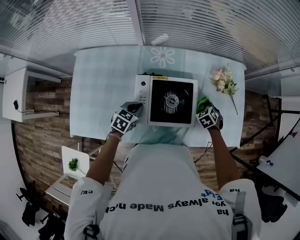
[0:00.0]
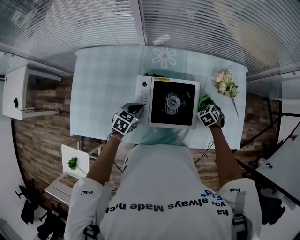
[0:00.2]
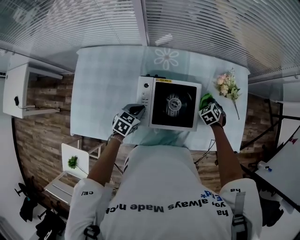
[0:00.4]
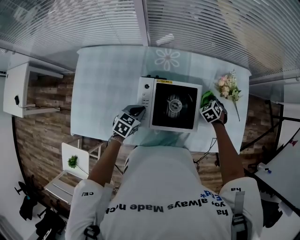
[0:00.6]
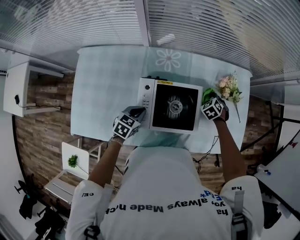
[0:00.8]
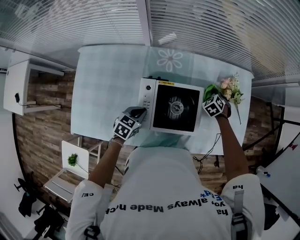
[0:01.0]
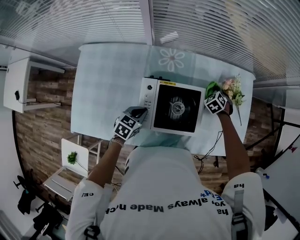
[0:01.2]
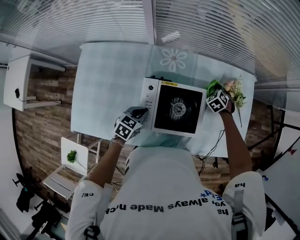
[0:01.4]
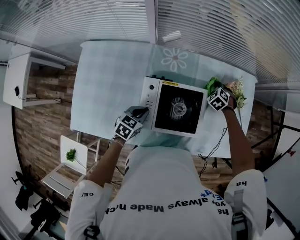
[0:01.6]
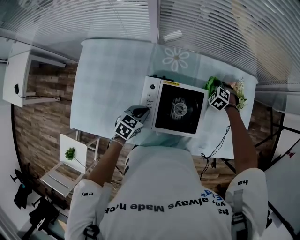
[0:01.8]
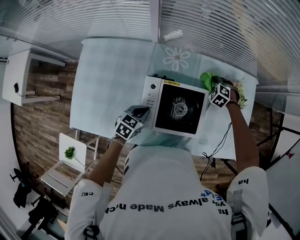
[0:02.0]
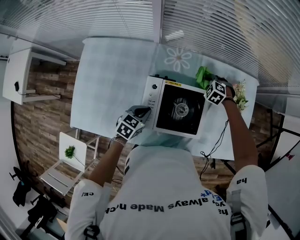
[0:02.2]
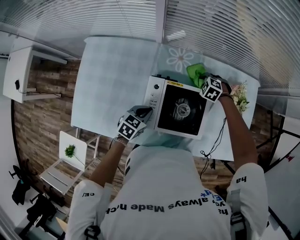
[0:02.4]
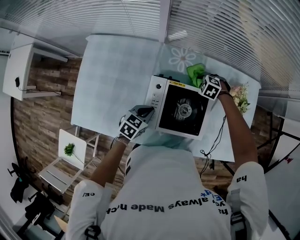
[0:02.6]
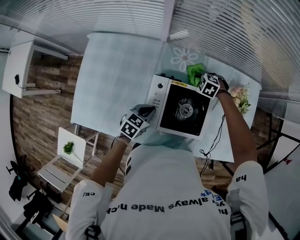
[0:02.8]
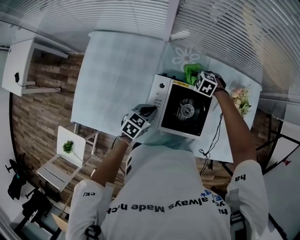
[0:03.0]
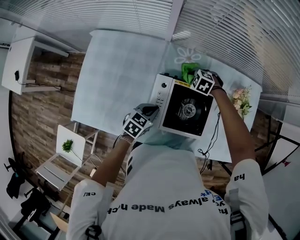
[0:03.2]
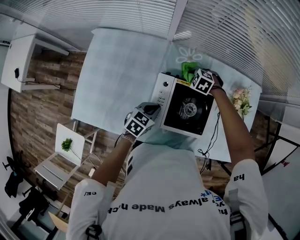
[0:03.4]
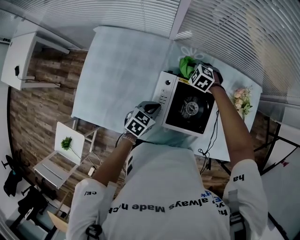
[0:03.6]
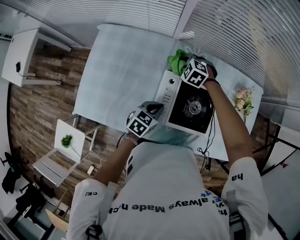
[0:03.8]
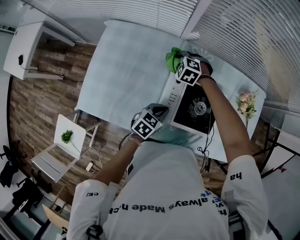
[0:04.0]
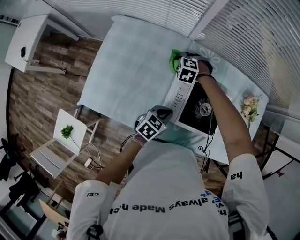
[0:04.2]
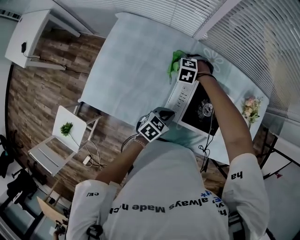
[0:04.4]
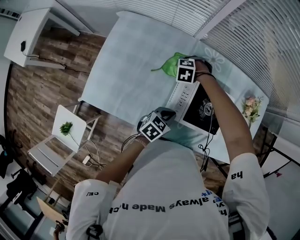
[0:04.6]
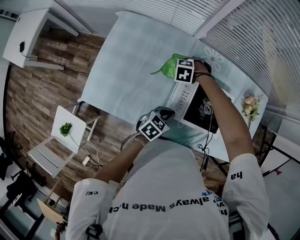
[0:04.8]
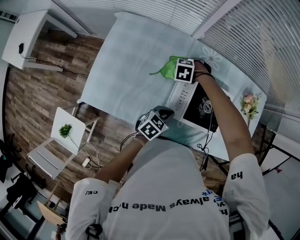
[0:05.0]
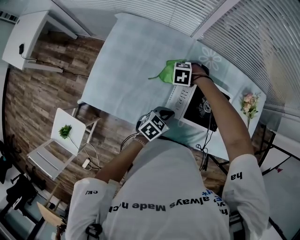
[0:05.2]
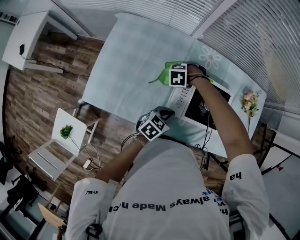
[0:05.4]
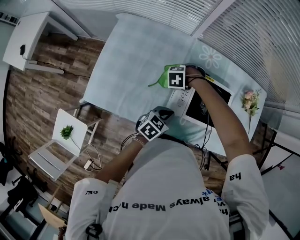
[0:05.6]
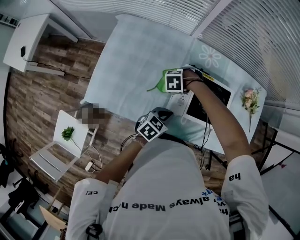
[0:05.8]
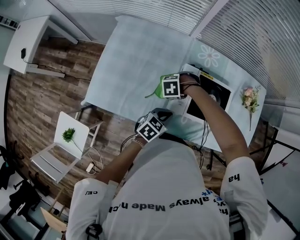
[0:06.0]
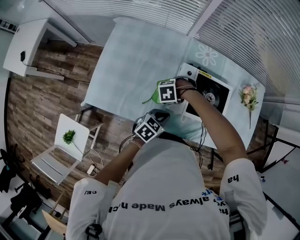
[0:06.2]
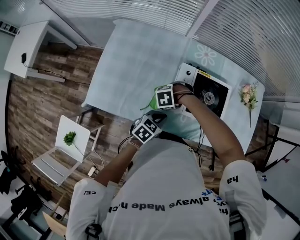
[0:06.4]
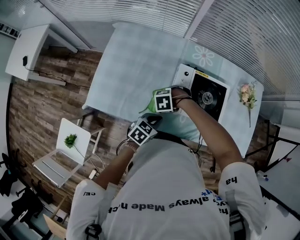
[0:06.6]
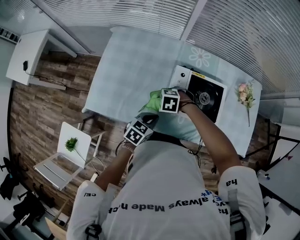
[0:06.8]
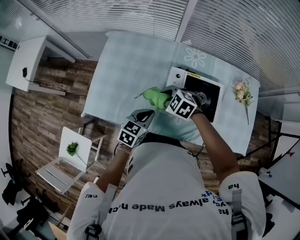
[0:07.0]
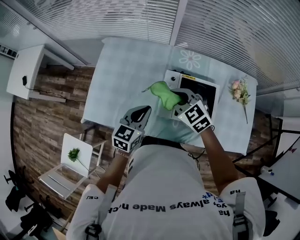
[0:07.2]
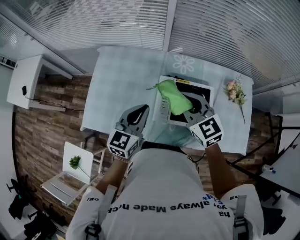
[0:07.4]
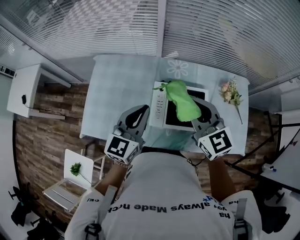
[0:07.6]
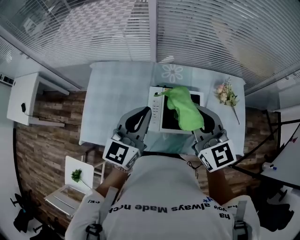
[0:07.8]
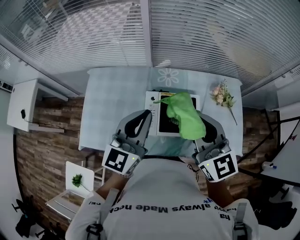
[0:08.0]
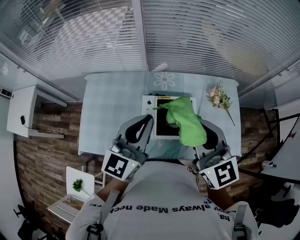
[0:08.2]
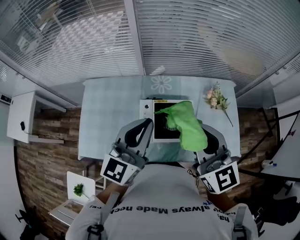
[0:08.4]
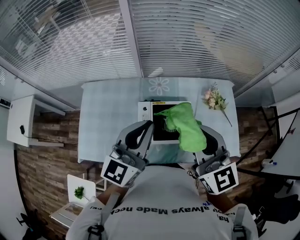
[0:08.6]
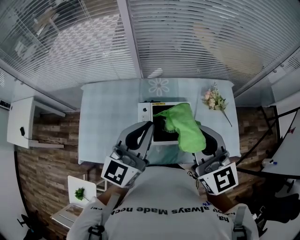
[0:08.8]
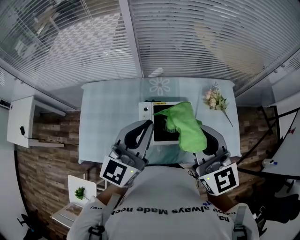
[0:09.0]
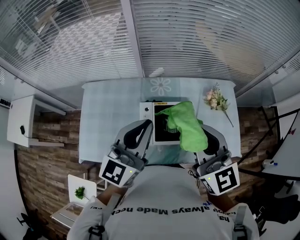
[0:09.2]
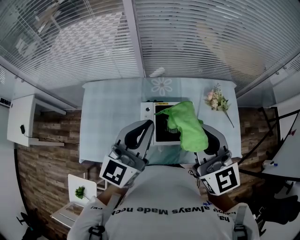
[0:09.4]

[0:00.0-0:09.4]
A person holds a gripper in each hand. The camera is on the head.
0:00.0 to 0:01.6: The right gripper heads forward and to the left, covering some 15 cm, and changes its angle by roughly 20 degrees.
0:01.6 to 0:03.2: The right gripper changes place by some 20 cm, and changes its angle by about 30 degrees.
0:03.2 to 0:04.8: The left gripper moves approximately 5 cm, while the right gripper ends up approximately 20 cm from where it was, and rotates about 20 degrees.
0:04.8 to 0:06.2: The right gripper ends up some 15 cm from where it was; the left gripper ends up about 5 cm from where it was.
0:06.2 to 0:07.8: The grippers both shift upward by roughly 35 cm. The left gripper angles its fingers upward, by about 40 degrees. Meanwhile the right gripper tilts its fingers approximately 70 degrees upward.
0:07.8 to 0:09.4: The grippers both shift upward by about 5 cm.

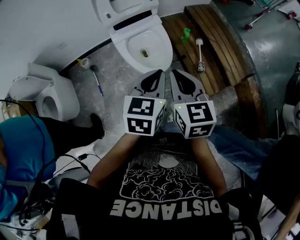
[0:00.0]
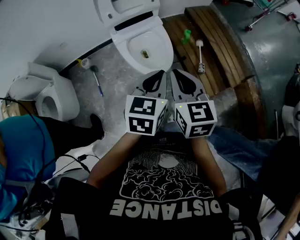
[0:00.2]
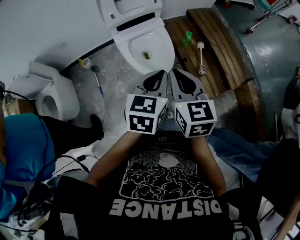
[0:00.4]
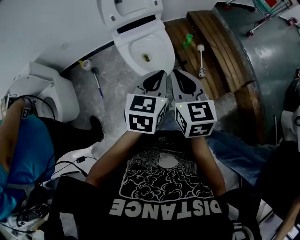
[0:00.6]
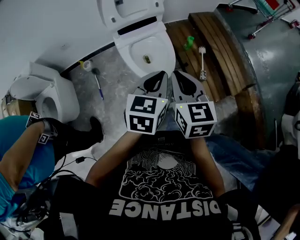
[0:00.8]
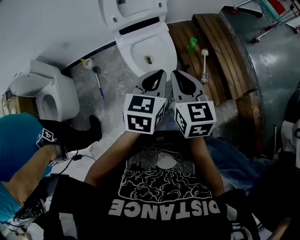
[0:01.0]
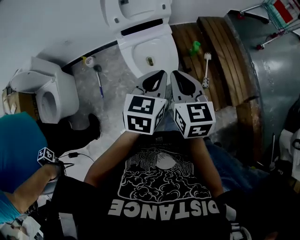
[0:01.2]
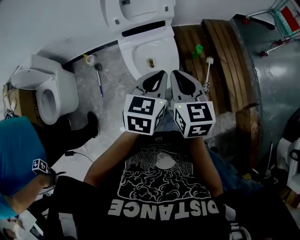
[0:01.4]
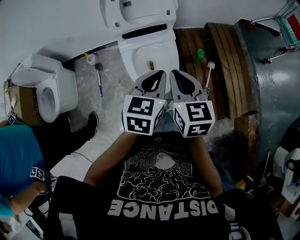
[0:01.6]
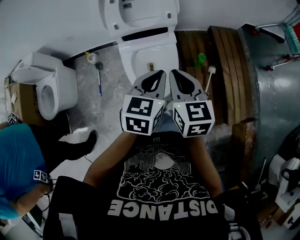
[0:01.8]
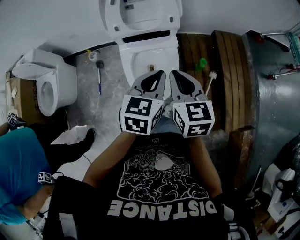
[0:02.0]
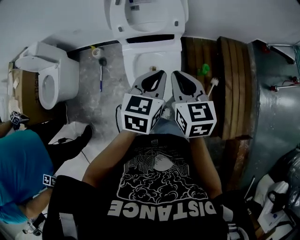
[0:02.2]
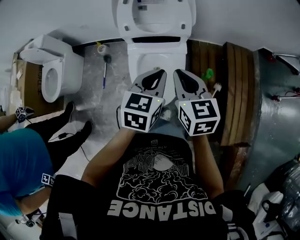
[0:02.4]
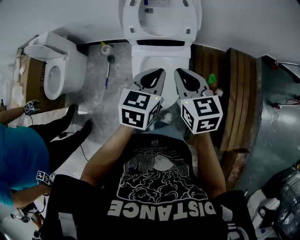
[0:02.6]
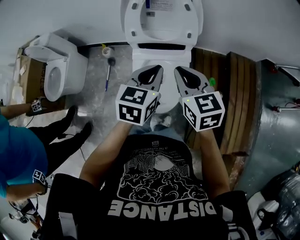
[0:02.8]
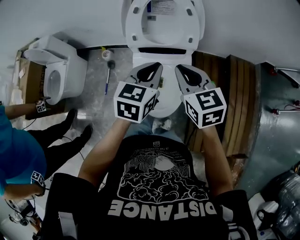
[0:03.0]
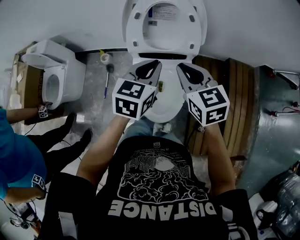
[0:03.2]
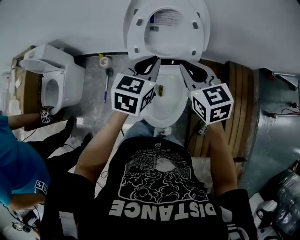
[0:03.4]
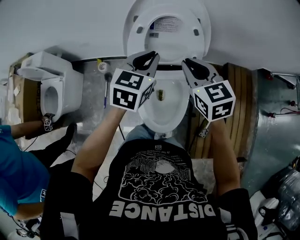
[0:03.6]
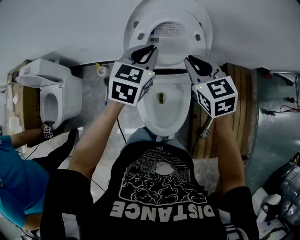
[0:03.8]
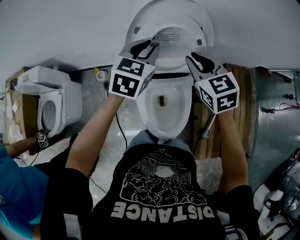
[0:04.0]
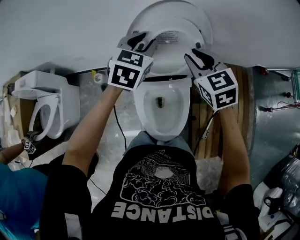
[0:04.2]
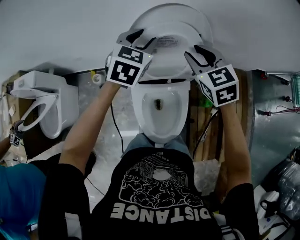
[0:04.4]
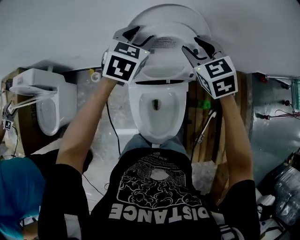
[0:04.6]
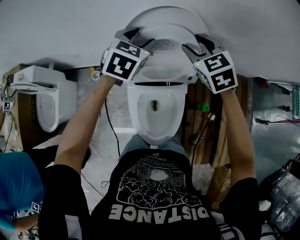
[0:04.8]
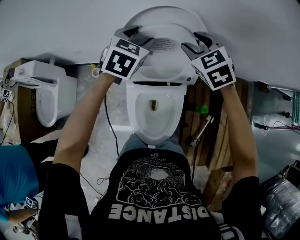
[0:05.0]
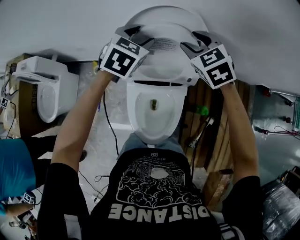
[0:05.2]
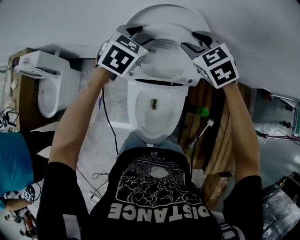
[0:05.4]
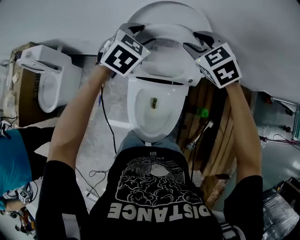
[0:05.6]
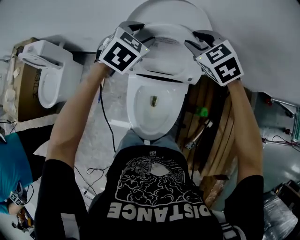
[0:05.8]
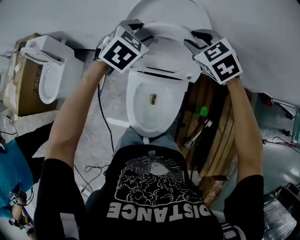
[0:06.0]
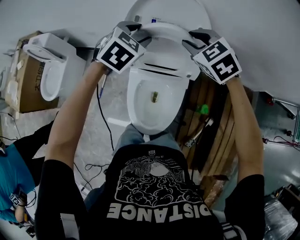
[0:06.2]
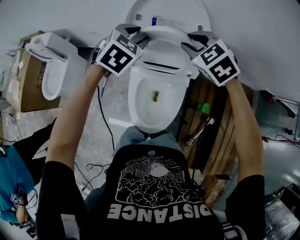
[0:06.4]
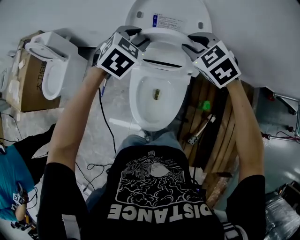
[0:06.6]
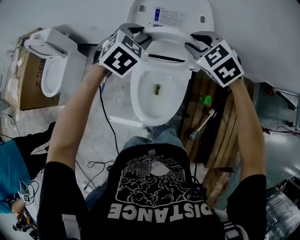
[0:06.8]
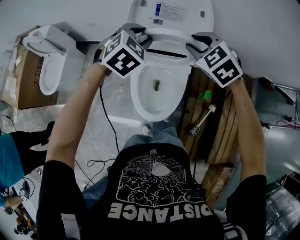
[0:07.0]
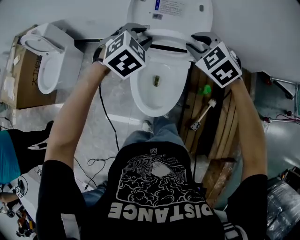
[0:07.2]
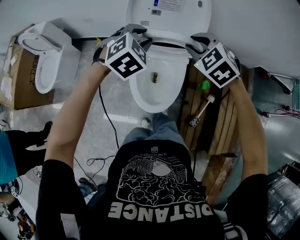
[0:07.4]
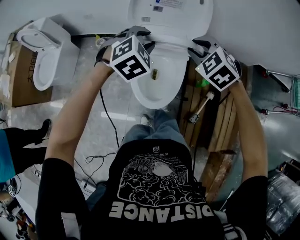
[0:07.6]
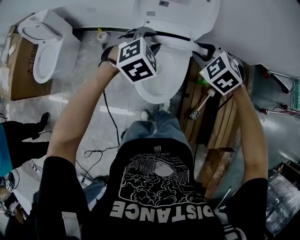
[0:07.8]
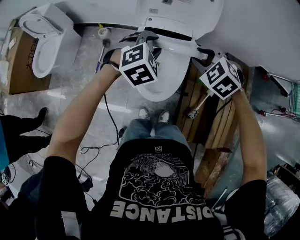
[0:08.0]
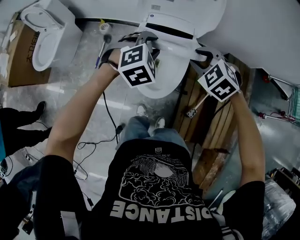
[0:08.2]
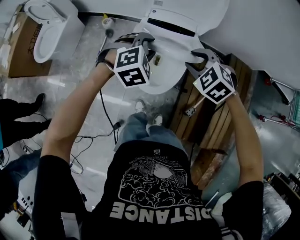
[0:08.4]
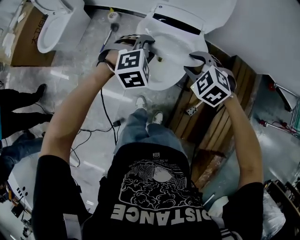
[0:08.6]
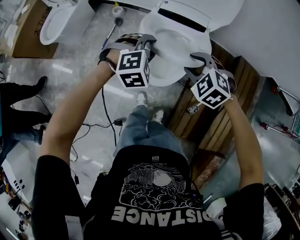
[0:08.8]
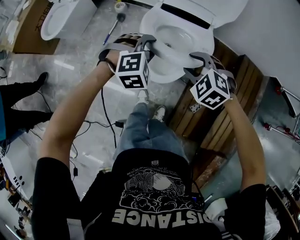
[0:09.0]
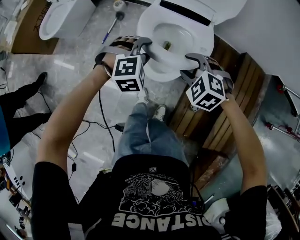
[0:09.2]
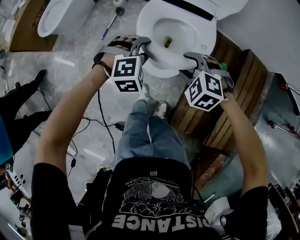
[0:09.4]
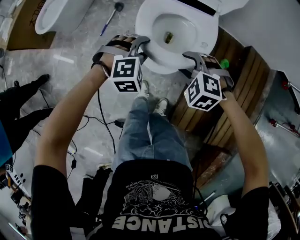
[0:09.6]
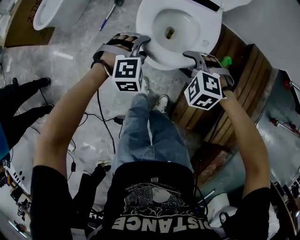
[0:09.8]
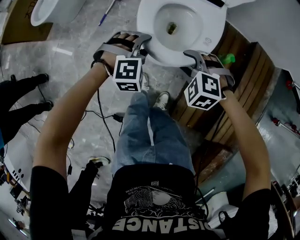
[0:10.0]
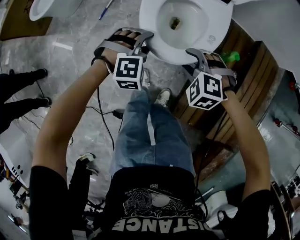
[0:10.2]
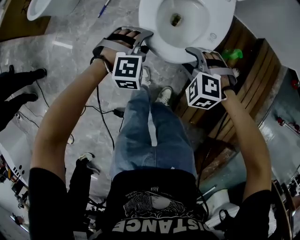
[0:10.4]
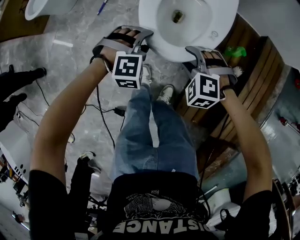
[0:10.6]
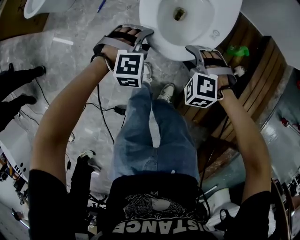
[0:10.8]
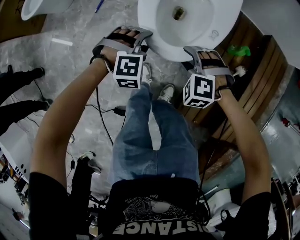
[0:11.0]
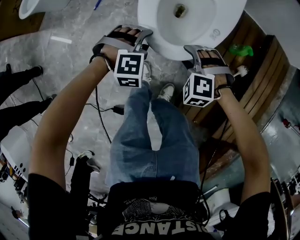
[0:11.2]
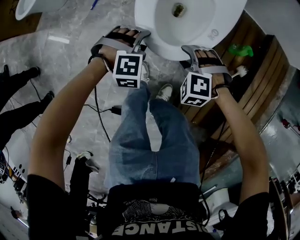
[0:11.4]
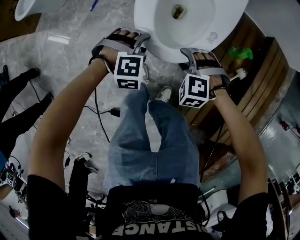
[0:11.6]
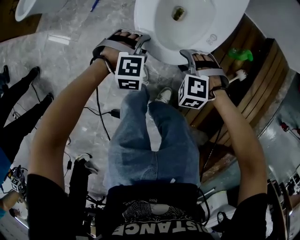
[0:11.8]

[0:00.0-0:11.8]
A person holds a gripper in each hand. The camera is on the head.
0:00.0 to 0:01.4: The two grippers go approximately 15 cm forward.
0:01.4 to 0:03.0: The grippers both shift forward by approximately 20 cm. The right gripper turns by about 30 degrees.
0:03.0 to 0:04.4: The two grippers go approximately 25 cm forward. The right gripper opens up, while the left gripper opens.
0:04.4 to 0:06.0: The right gripper turns by some 30 degrees.
0:06.0 to 0:07.4: Both grippers move backward, about 20 cm.
0:07.4 to 0:08.8: Both grippers move backward and downward, about 20 cm. The right gripper turns by roughly 20 degrees.
0:08.8 to 0:10.4: Both grippers travel together downward and backward, roughly 25 cm.
0:10.4 to 0:11.8: The grippers both shift downward by approximately 15 cm.

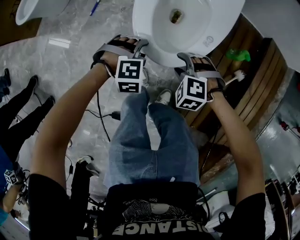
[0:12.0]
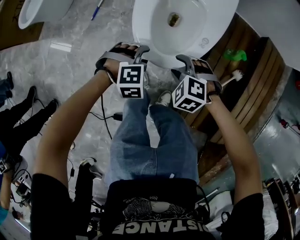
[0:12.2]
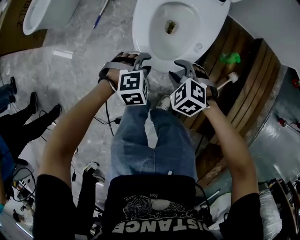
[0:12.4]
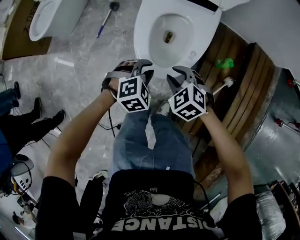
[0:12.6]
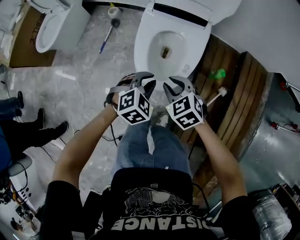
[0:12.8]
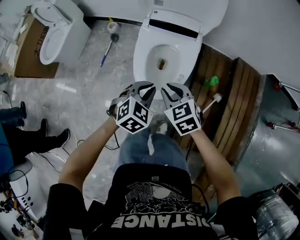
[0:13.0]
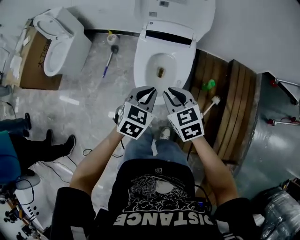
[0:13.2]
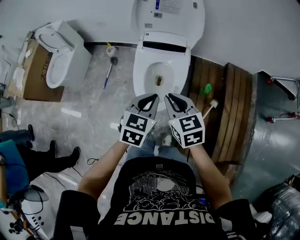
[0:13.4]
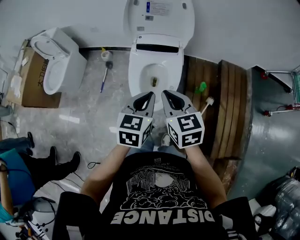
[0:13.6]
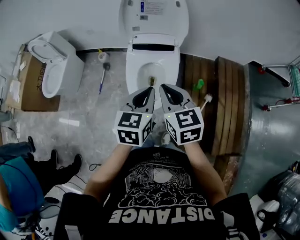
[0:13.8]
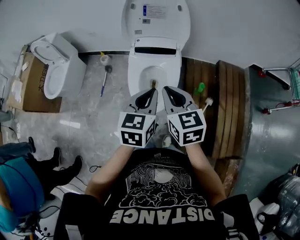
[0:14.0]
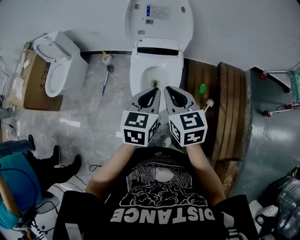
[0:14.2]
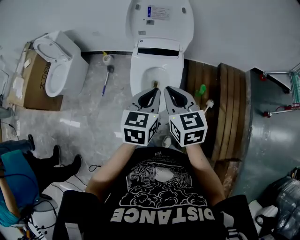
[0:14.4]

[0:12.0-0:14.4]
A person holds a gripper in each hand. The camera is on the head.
0:12.0 to 0:13.2: Both grippers move upward, some 35 cm. The left gripper twists about 50 degrees counterclockwise, seen from behind, and closes. The right gripper rolls clockwise, seen from behind, by approximately 60 degrees, and closes its fingers.
0:13.2 to 0:14.4: Both grippers travel together upward, some 15 cm. The left gripper changes its angle by roughly 20 degrees. The right gripper rotates approximately 20 degrees.
